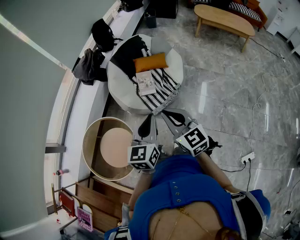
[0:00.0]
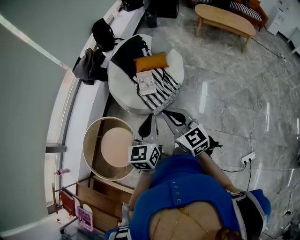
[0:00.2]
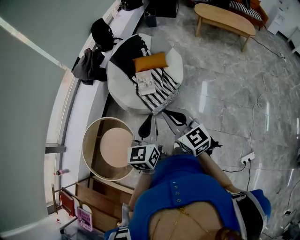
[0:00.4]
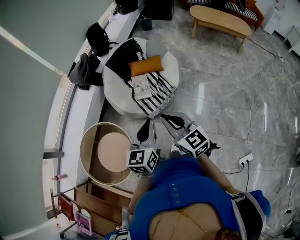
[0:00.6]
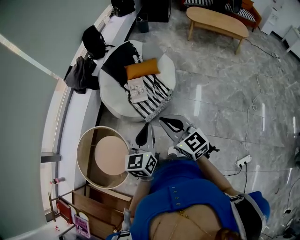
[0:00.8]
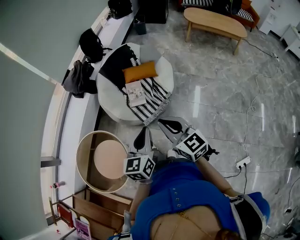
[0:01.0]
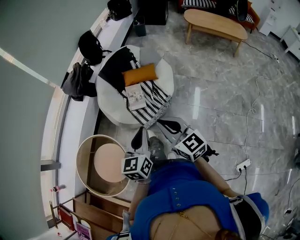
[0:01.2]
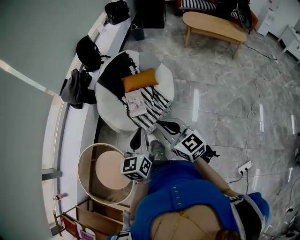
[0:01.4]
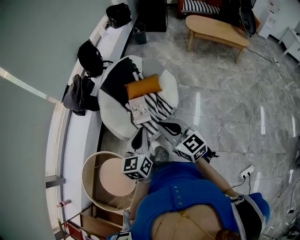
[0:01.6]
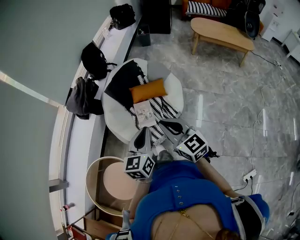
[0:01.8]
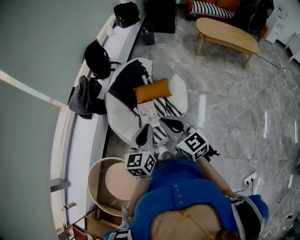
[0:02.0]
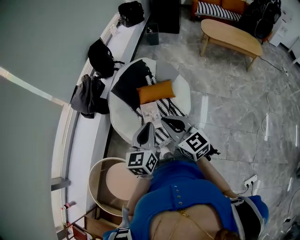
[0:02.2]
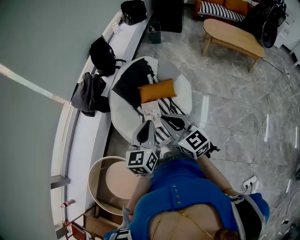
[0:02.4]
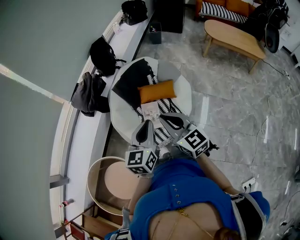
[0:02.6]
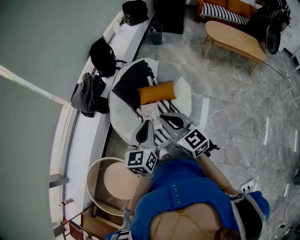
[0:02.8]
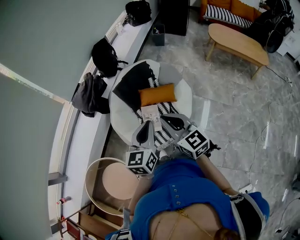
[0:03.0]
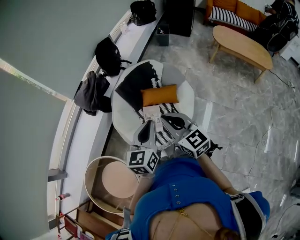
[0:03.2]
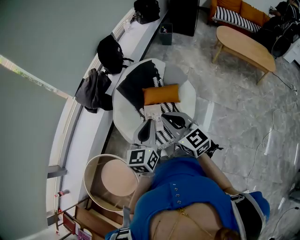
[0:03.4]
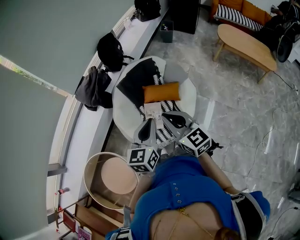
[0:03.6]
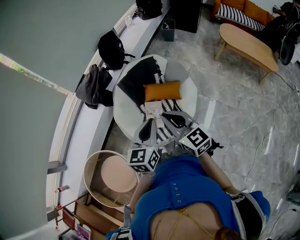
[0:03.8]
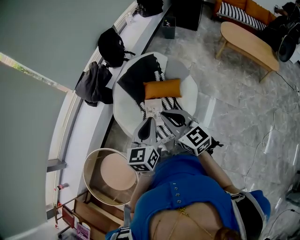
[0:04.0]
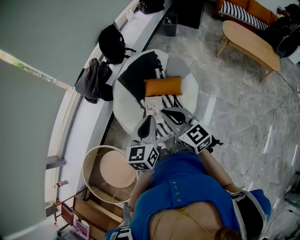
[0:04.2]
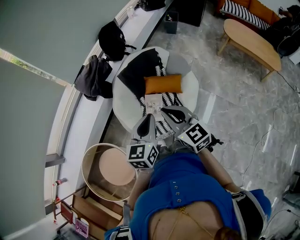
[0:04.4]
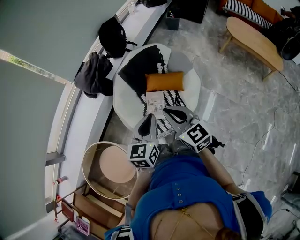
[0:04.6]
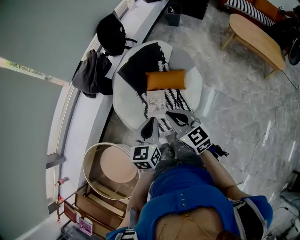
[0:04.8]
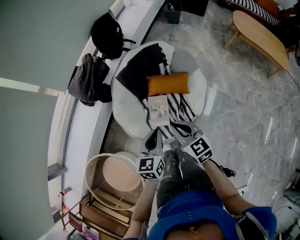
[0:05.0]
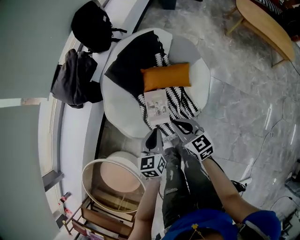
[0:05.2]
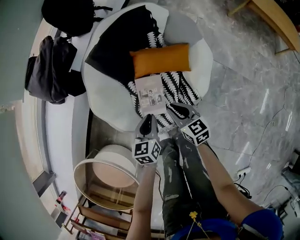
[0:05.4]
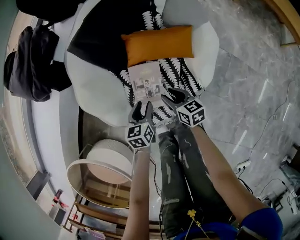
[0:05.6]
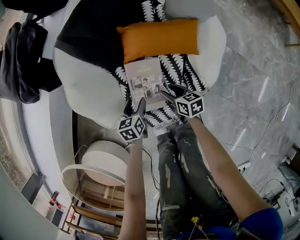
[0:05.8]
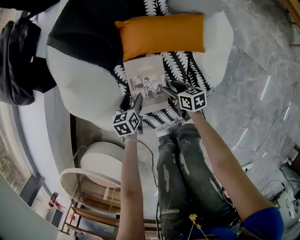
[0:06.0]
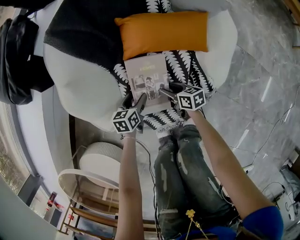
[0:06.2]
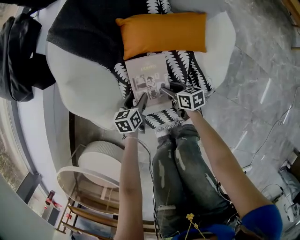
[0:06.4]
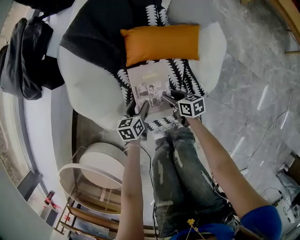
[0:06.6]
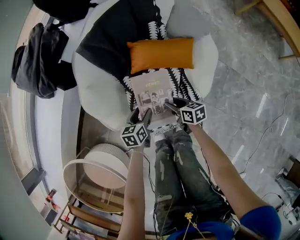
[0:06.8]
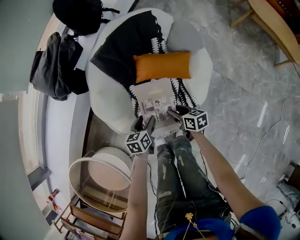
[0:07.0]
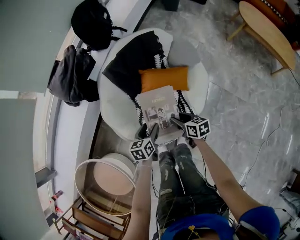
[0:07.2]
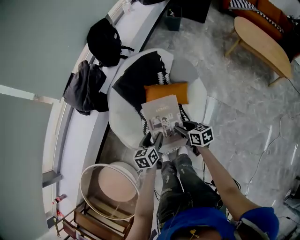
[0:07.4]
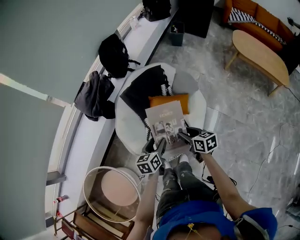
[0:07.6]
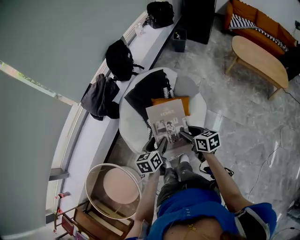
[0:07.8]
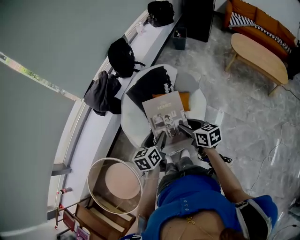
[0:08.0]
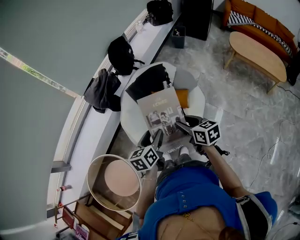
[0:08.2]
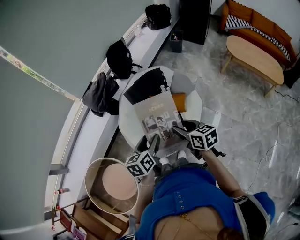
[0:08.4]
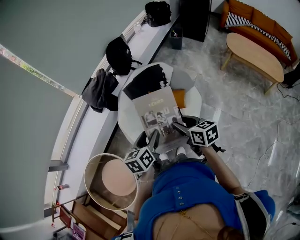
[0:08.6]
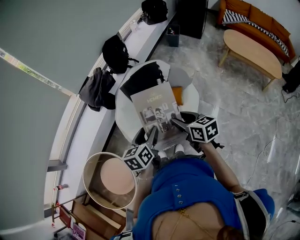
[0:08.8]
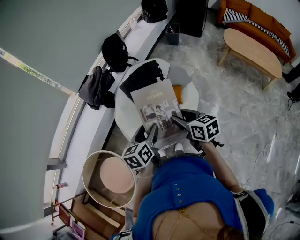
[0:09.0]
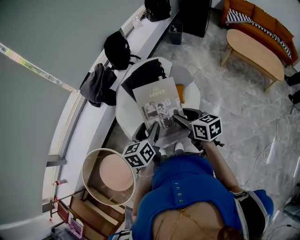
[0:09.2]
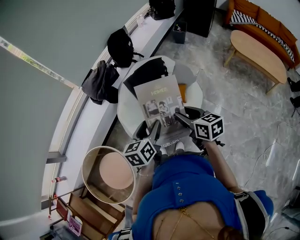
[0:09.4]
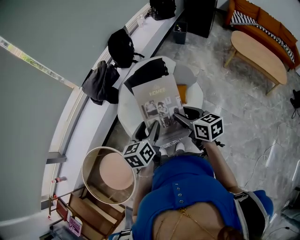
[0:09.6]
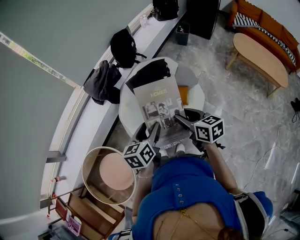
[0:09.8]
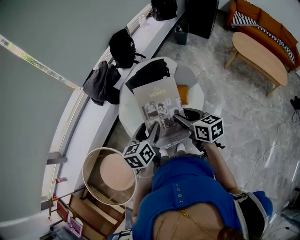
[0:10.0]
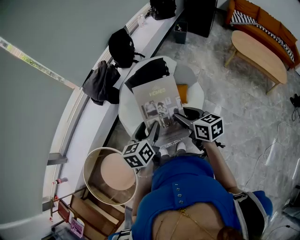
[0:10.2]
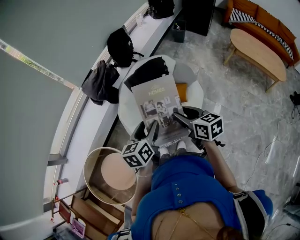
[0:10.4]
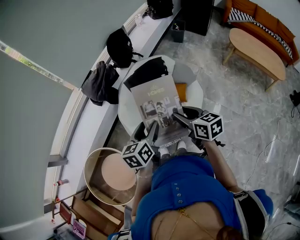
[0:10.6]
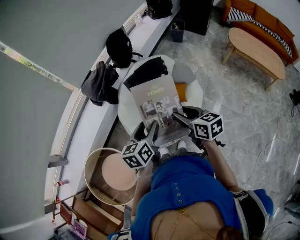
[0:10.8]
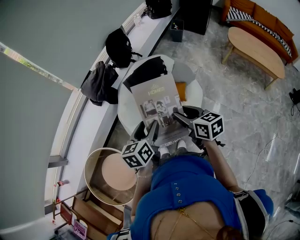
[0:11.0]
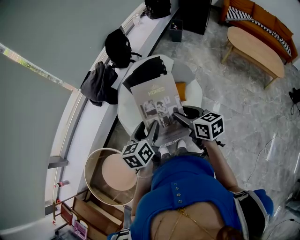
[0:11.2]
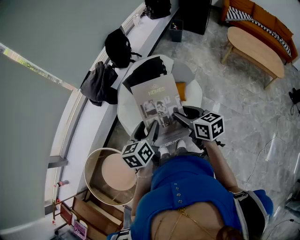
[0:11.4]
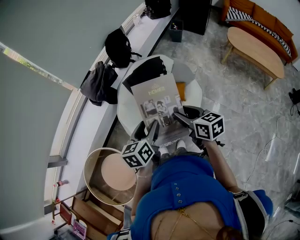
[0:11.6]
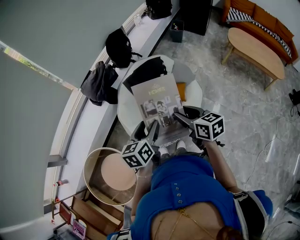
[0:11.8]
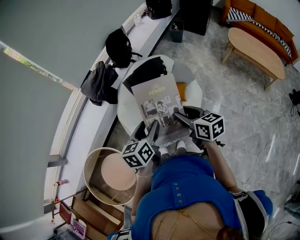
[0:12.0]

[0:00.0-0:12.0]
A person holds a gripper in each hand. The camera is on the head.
0:00.0 to 0:01.6: The grippers both shift forward by about 20 cm.
0:01.6 to 0:03.0: Both grippers travel together forward, about 15 cm.
0:03.0 to 0:04.4: There are only small adjustments of the grippers.
0:04.4 to 0:06.0: The two grippers go about 80 cm downward. The left gripper tips its fingers downward by about 30 degrees, and opens up; the right gripper rotates around the line of its fingers by roughly 40 degrees, clockwise from behind, and opens its fingers.
0:06.0 to 0:07.6: Both grippers move upward, approximately 60 cm.
0:07.6 to 0:09.0: Both grippers travel together upward, about 20 cm.
0:09.0 to 0:10.4: Neither gripper changes place.
0:10.4 to 0:12.0: Both grippers stay put.

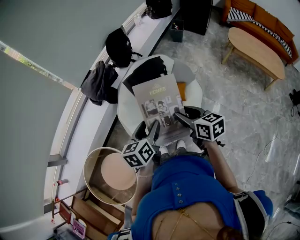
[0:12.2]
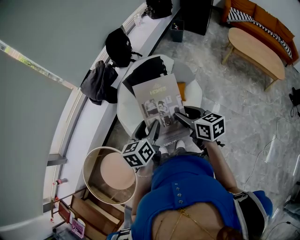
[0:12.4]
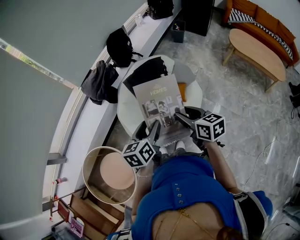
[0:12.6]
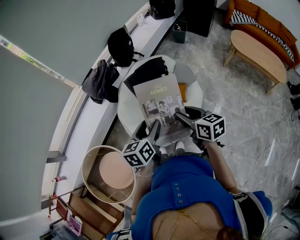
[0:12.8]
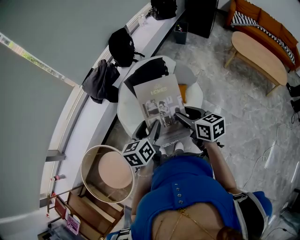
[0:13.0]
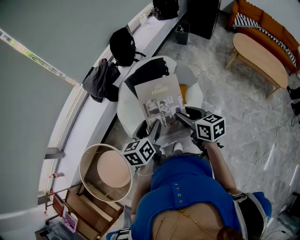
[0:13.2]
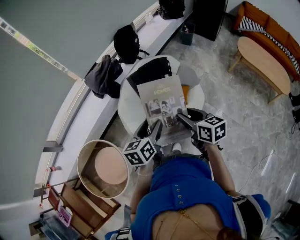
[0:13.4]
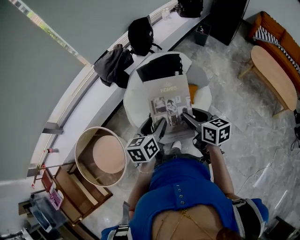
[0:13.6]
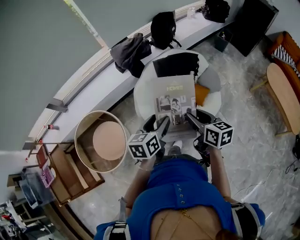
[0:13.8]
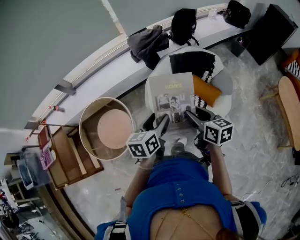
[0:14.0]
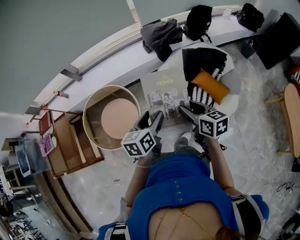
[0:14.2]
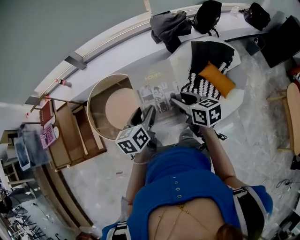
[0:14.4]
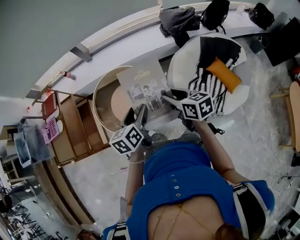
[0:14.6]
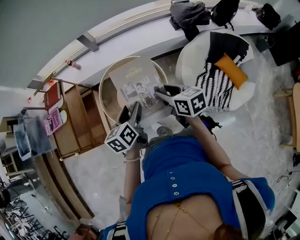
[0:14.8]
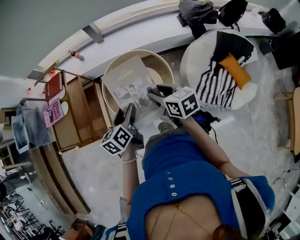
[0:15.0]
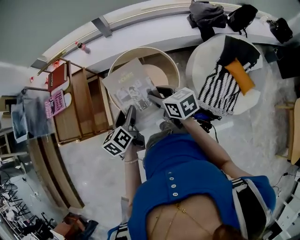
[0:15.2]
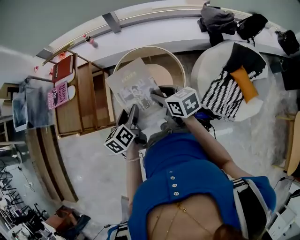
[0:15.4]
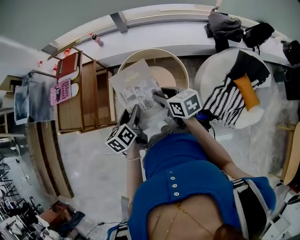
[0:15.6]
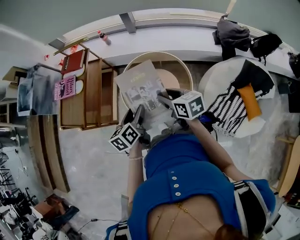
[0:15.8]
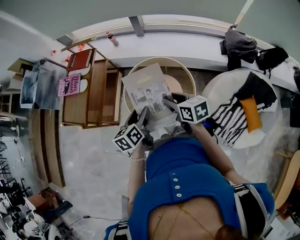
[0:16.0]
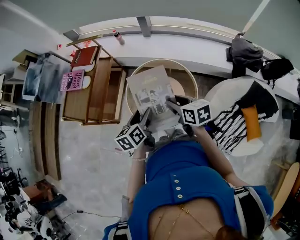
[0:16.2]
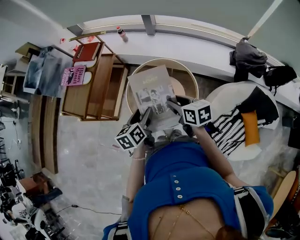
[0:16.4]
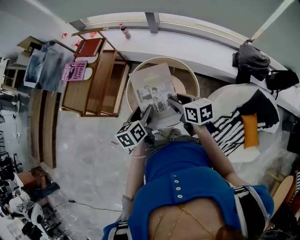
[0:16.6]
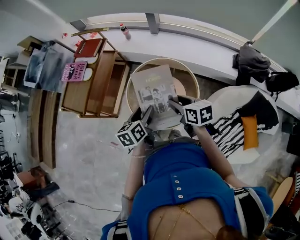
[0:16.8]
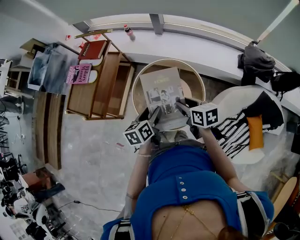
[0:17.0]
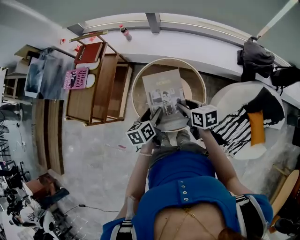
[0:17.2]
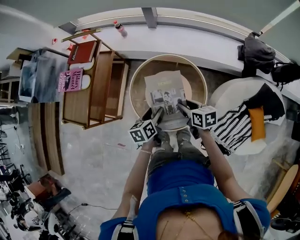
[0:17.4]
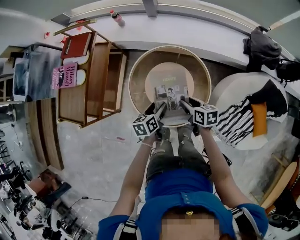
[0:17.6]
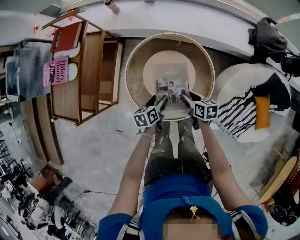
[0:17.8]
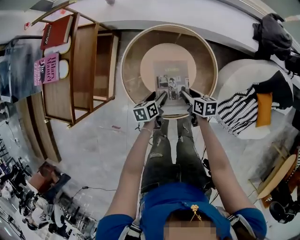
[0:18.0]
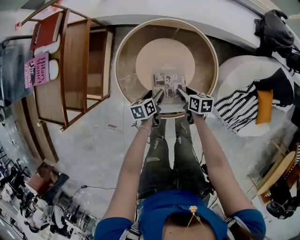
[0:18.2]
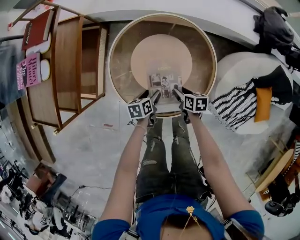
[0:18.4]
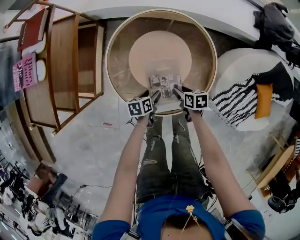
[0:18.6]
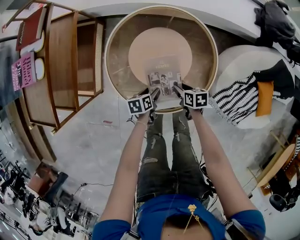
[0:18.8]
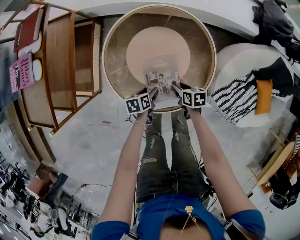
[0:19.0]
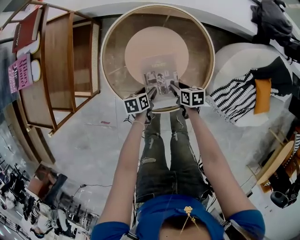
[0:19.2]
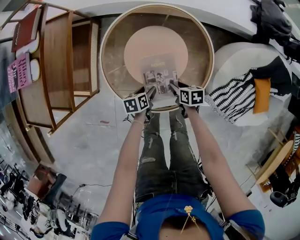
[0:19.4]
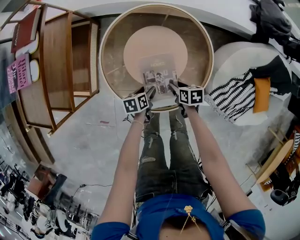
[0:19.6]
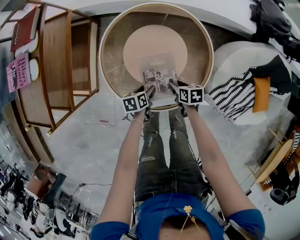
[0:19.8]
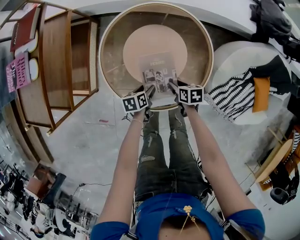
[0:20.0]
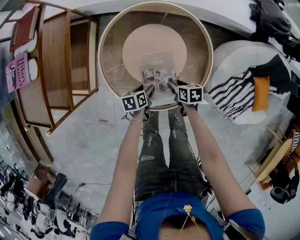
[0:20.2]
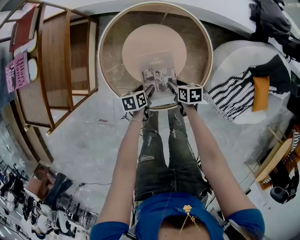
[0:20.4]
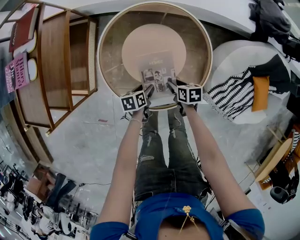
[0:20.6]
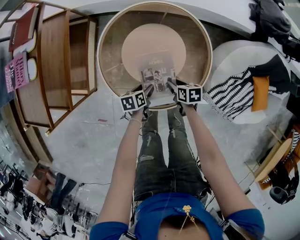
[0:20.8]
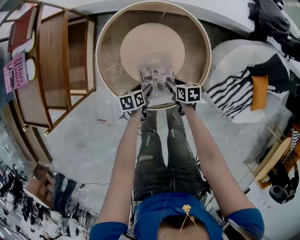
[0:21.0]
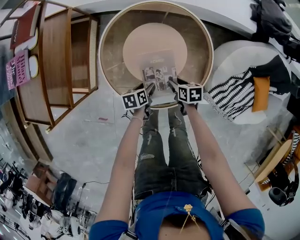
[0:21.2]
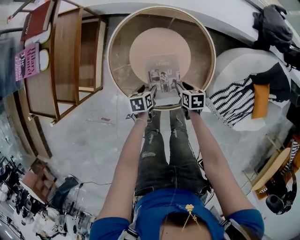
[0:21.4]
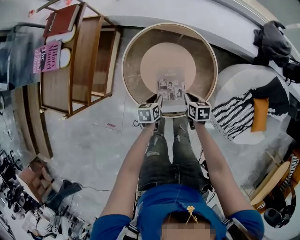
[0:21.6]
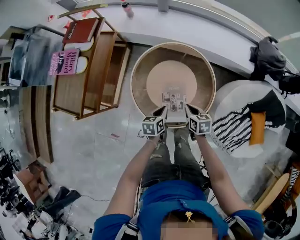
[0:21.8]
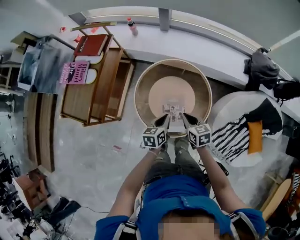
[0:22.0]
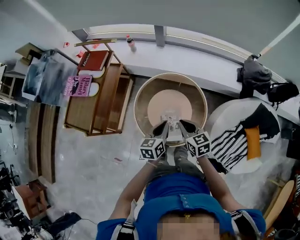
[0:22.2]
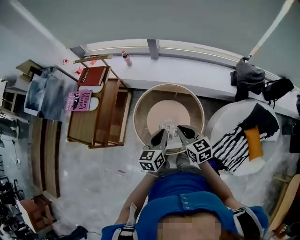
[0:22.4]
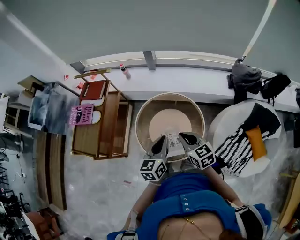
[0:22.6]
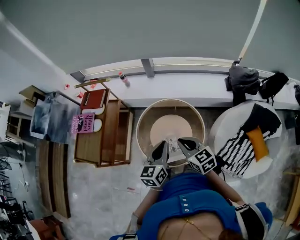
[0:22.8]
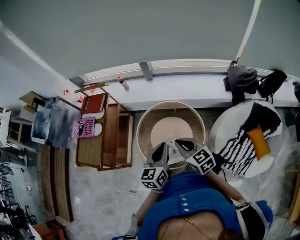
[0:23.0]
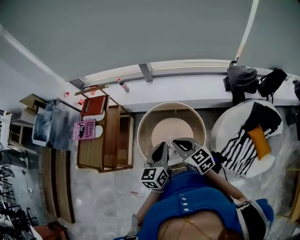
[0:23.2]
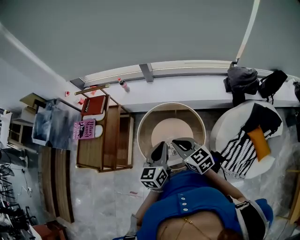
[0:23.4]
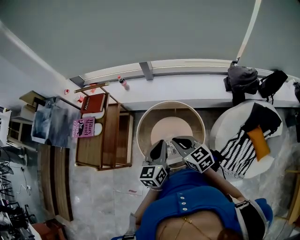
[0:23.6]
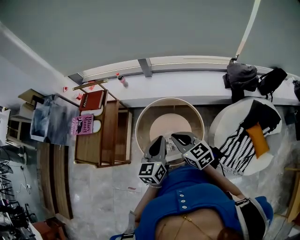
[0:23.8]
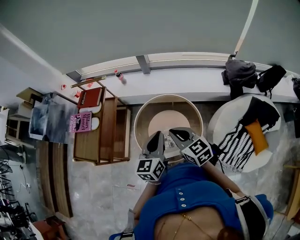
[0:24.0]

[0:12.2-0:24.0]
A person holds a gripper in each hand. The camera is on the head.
0:12.2 to 0:13.6: There are only small adjustments of the grippers.
0:13.6 to 0:15.2: The two grippers travel together, approximately 70 cm. The left gripper swivels some 60 degrees. The right gripper rotates about 50 degrees.
0:15.2 to 0:16.6: The left gripper travels forward by roughly 5 cm; the right gripper travels forward by approximately 10 cm.
0:16.6 to 0:18.2: Both grippers travel together downward, approximately 40 cm. The left gripper swivels about 30 degrees. The right gripper turns by roughly 30 degrees.
0:18.2 to 0:19.6: Both grippers move downward, about 5 cm.
0:19.6 to 0:21.0: Both grippers stay about where they are.
0:21.0 to 0:22.6: The two grippers go some 50 cm upward. The right gripper points its fingers some 30 degrees further upward, and closes up. The left gripper angles its fingers upward, by roughly 40 degrees, and closes.
0:22.6 to 0:24.0: Both grippers move upward, about 5 cm.
